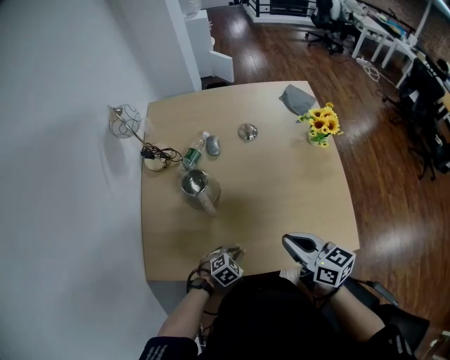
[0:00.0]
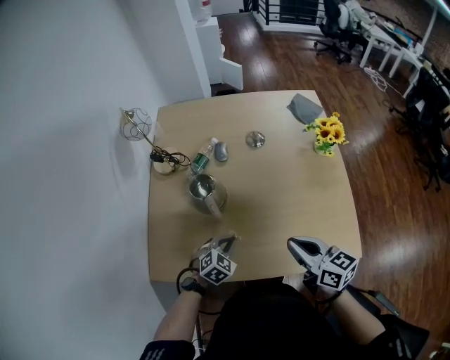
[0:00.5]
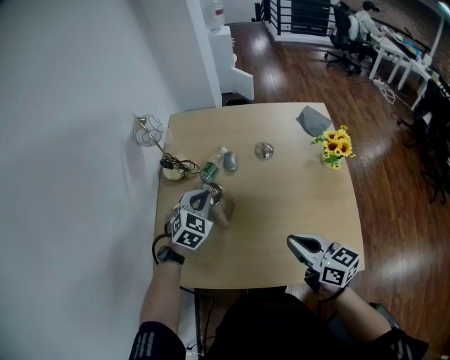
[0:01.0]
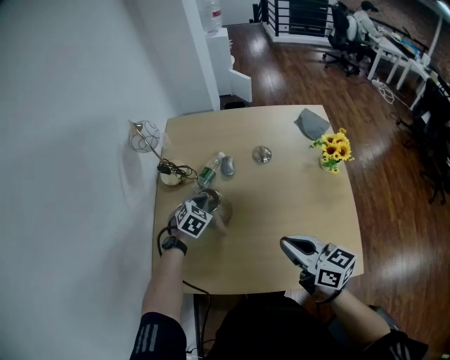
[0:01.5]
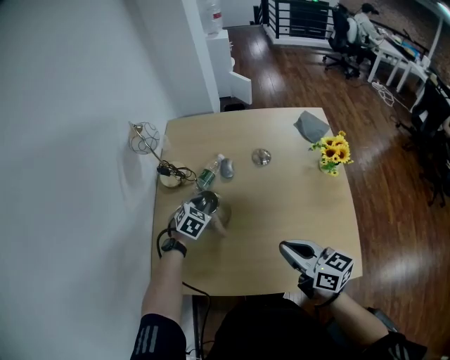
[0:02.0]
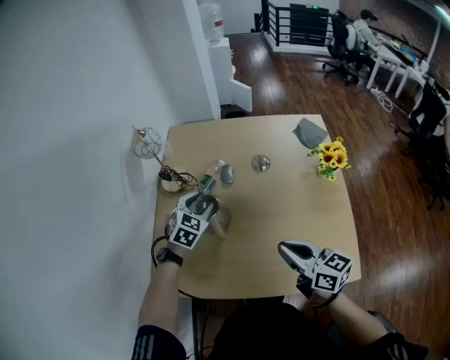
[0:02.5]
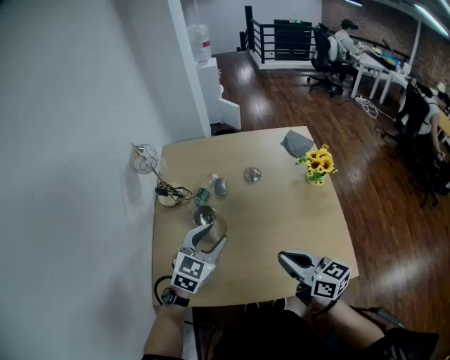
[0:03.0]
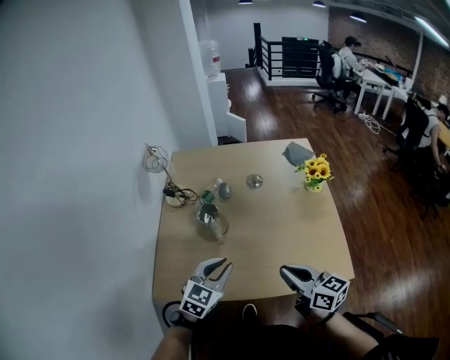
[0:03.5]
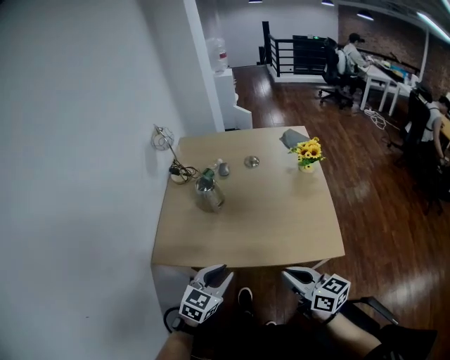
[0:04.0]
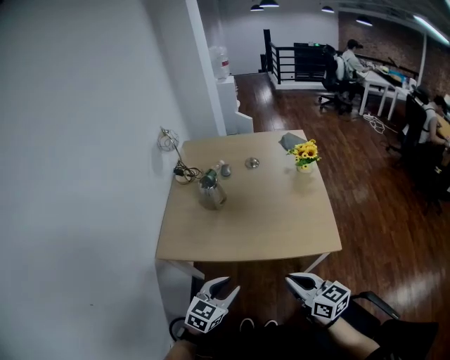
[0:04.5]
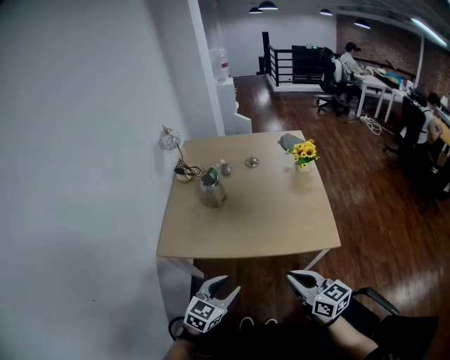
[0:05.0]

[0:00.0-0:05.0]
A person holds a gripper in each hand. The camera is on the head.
0:00.0 to 0:02.5: The left gripper moves forward and upward, about 35 cm, rotates roughly 40 degrees, and opens its fingers; the right gripper moves upward and forward, some 5 cm.
0:02.5 to 0:05.0: Both grippers move backward, some 50 cm. The left gripper changes its angle by approximately 30 degrees.

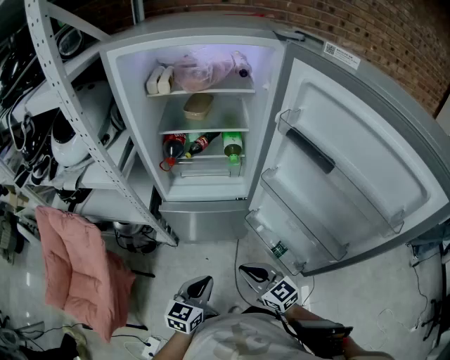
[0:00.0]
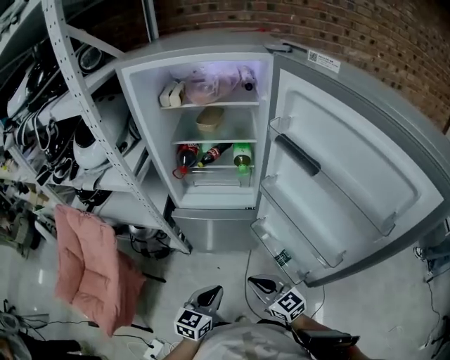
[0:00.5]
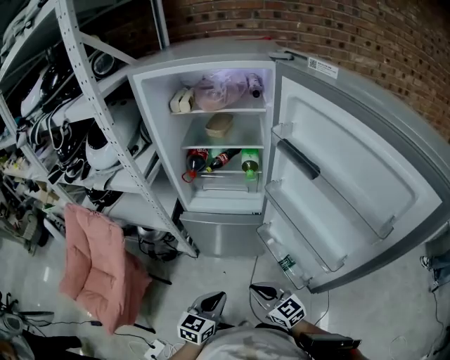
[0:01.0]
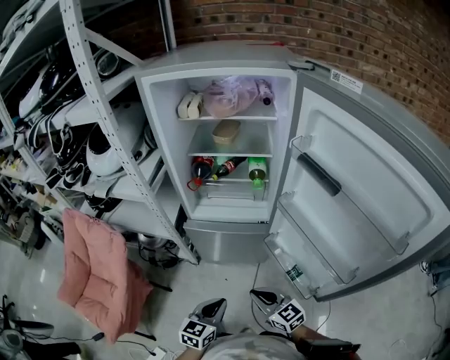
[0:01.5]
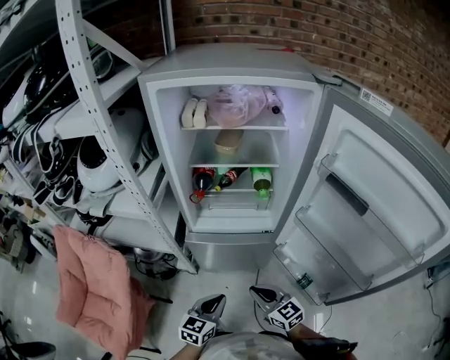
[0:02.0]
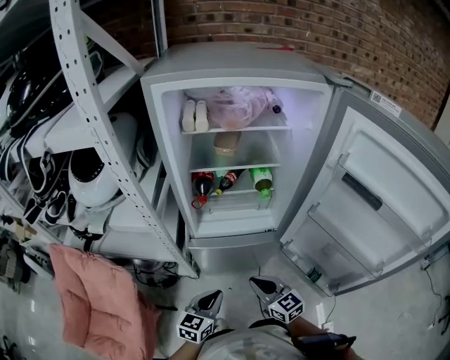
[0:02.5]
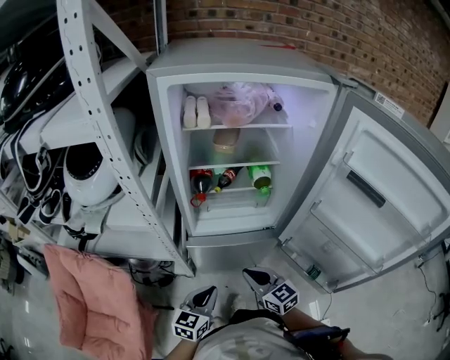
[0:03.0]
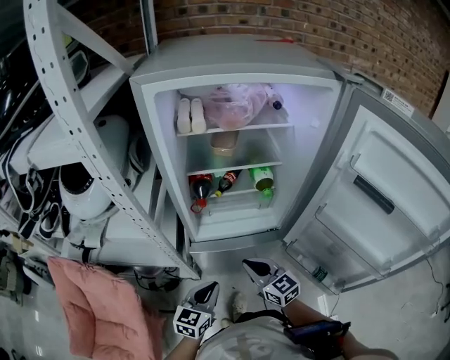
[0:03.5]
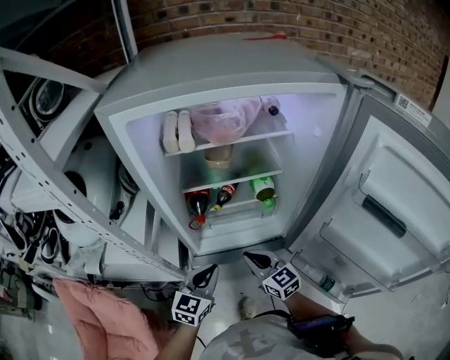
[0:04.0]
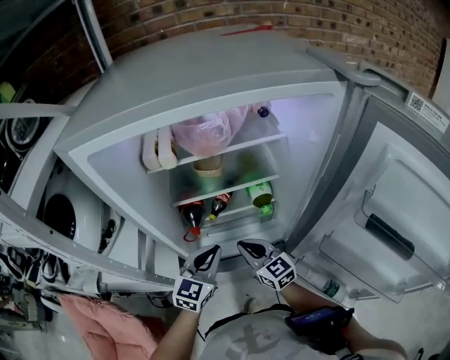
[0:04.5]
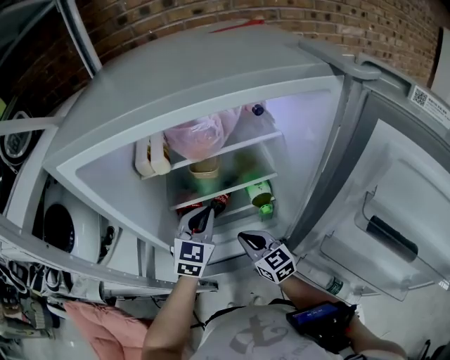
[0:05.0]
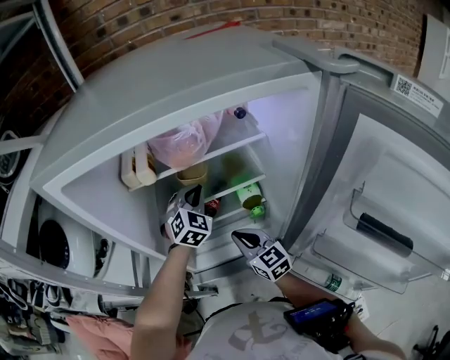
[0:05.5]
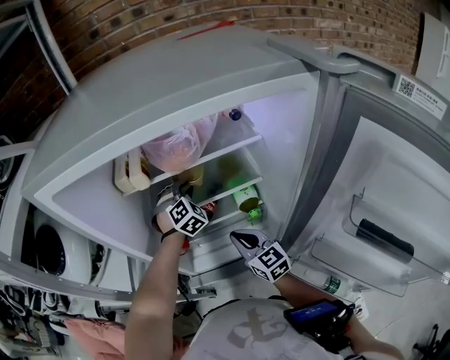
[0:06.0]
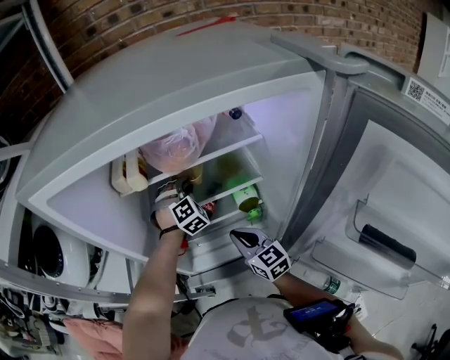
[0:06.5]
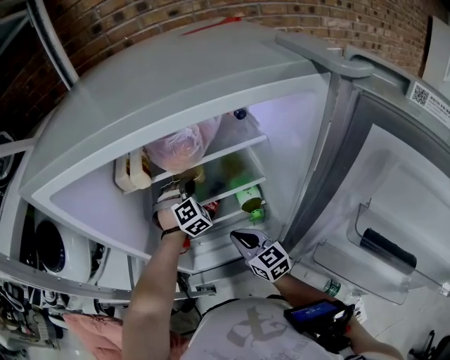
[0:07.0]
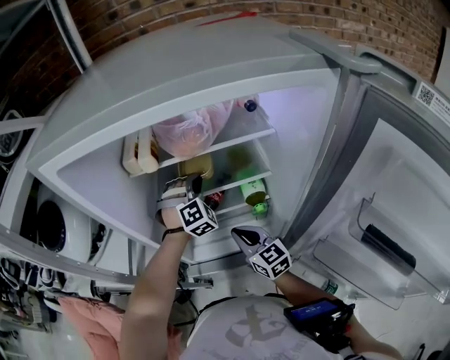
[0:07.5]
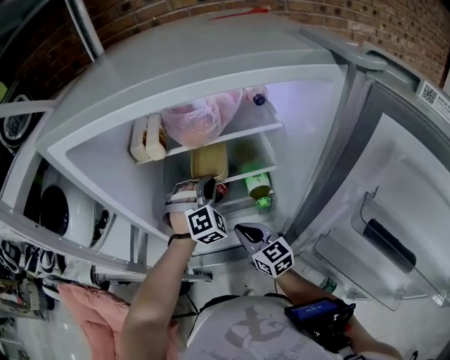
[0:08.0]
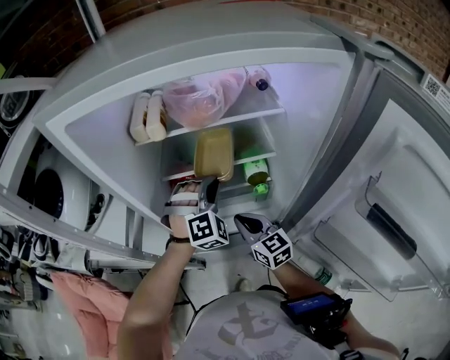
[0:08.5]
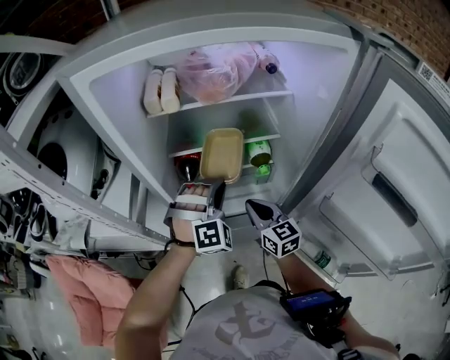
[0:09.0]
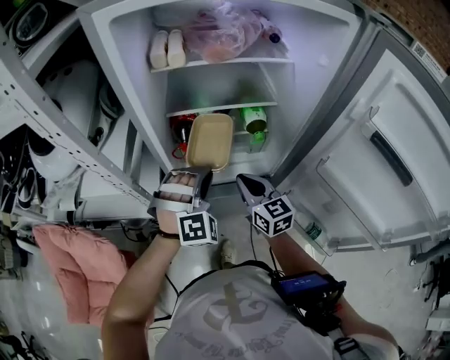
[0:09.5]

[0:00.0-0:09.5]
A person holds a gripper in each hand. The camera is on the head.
0:00.0 to 0:02.0: The left gripper heads forward, covering roughly 5 cm; the right gripper moves approximately 5 cm.
0:02.0 to 0:04.0: The grippers both shift forward by some 25 cm.
0:04.0 to 0:05.5: The right gripper moves forward, some 15 cm. The left gripper moves forward, some 30 cm, and rolls clockwise, seen from behind, by about 40 degrees.
0:05.5 to 0:07.5: The left gripper turns by about 30 degrees.
0:07.5 to 0:09.5: The left gripper goes some 25 cm backward. The right gripper travels backward by about 10 cm.

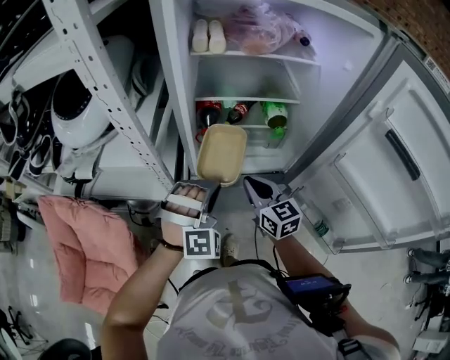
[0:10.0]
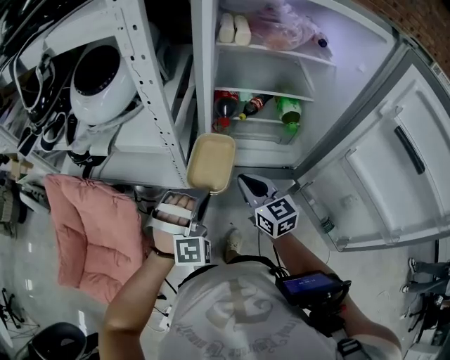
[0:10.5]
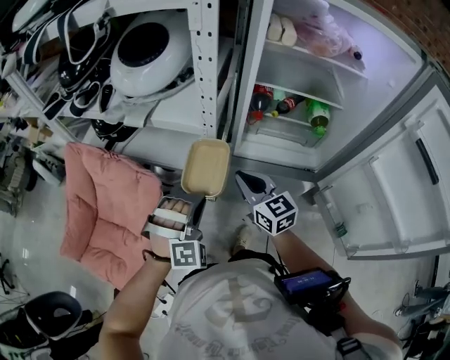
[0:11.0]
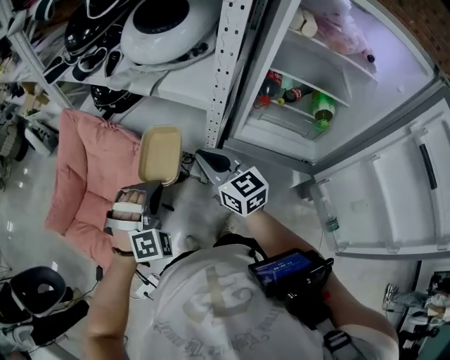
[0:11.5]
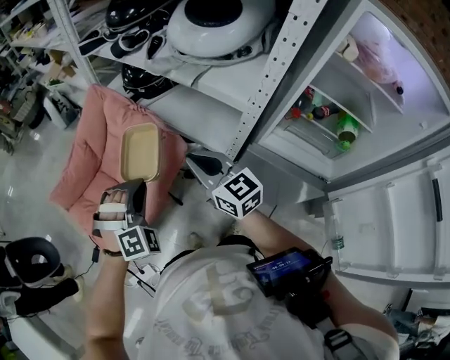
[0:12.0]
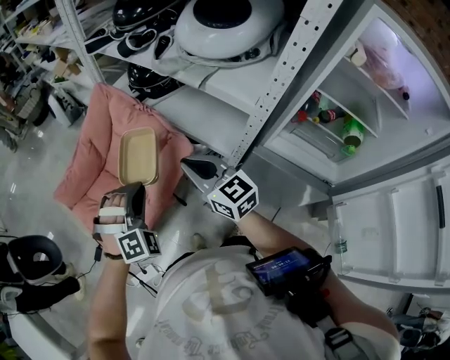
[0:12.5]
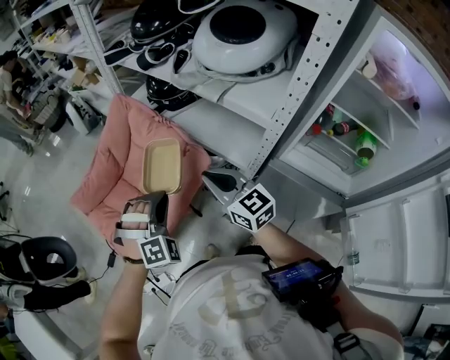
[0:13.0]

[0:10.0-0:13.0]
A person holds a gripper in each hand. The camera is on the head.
0:10.0 to 0:11.5: The right gripper changes place by about 30 cm, and swivels approximately 30 degrees. Meanwhile the left gripper shifts by approximately 30 cm, and swivels roughly 30 degrees.
0:11.5 to 0:13.0: The grippers both shift to the left by roughly 15 cm.

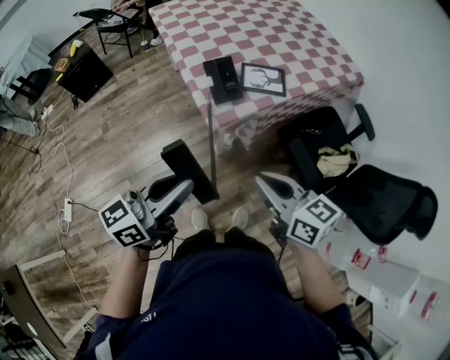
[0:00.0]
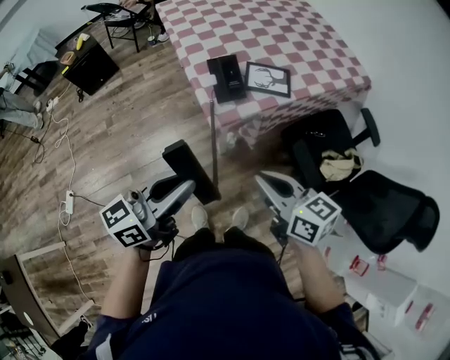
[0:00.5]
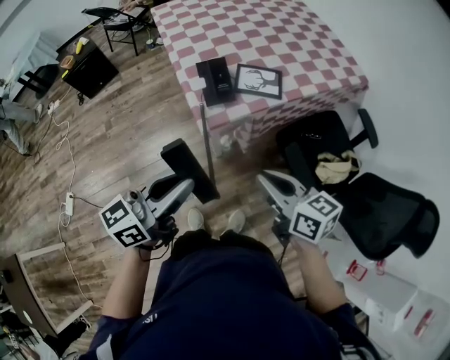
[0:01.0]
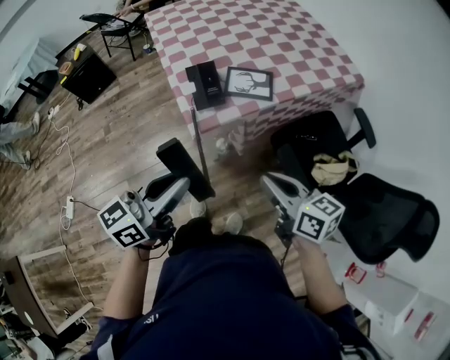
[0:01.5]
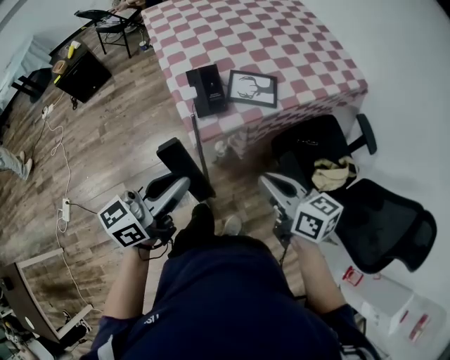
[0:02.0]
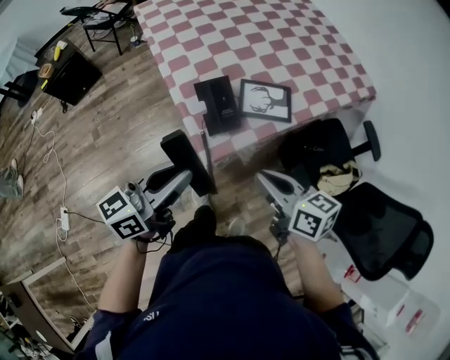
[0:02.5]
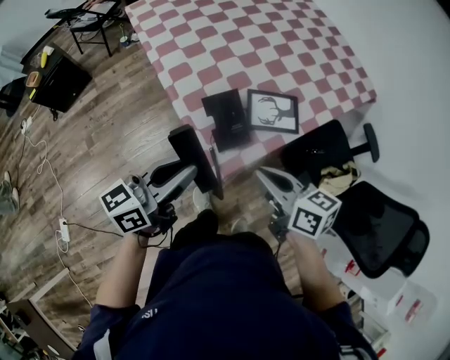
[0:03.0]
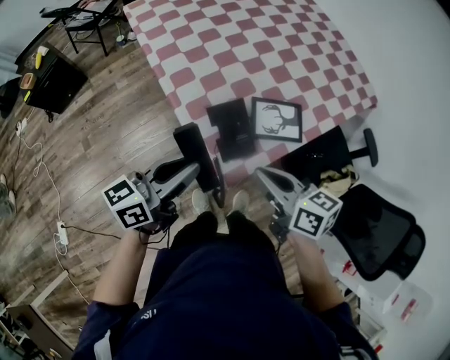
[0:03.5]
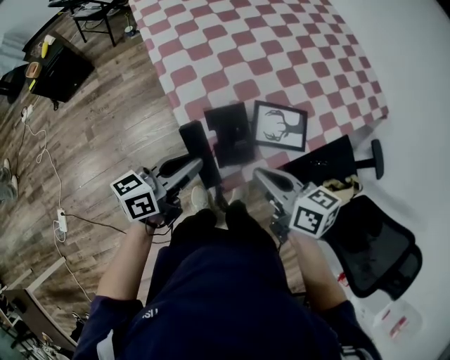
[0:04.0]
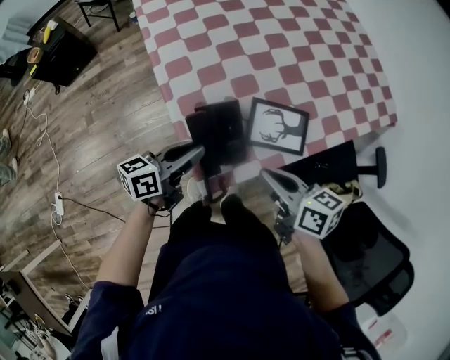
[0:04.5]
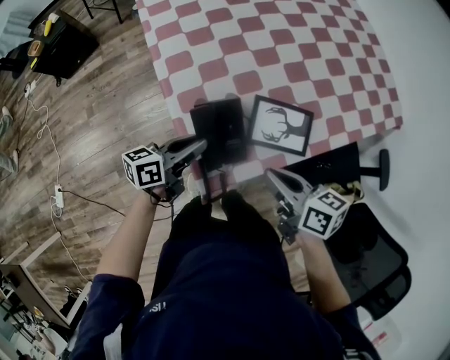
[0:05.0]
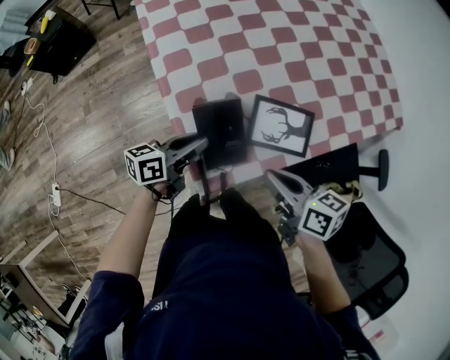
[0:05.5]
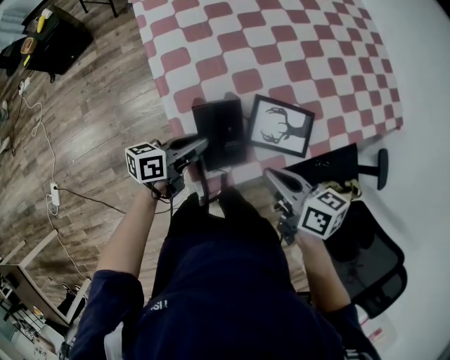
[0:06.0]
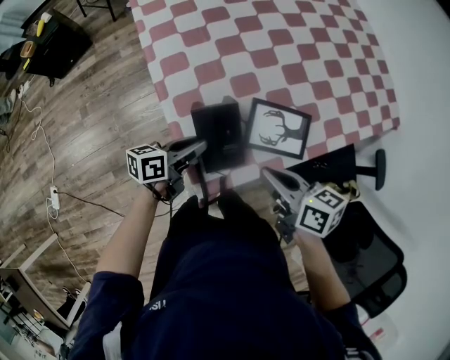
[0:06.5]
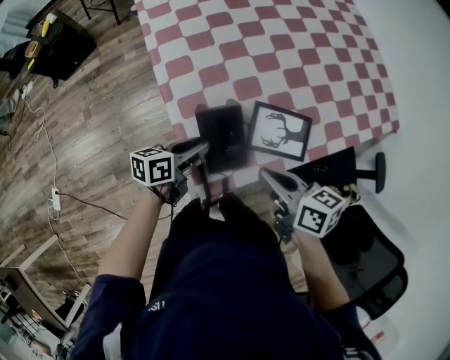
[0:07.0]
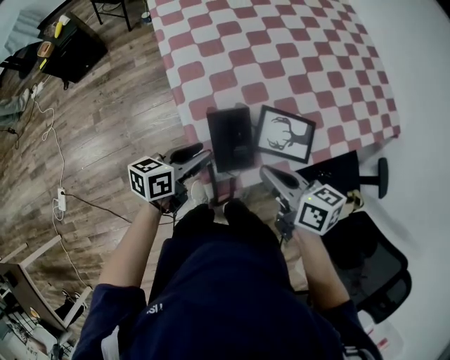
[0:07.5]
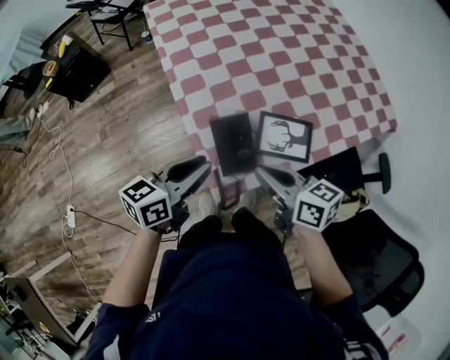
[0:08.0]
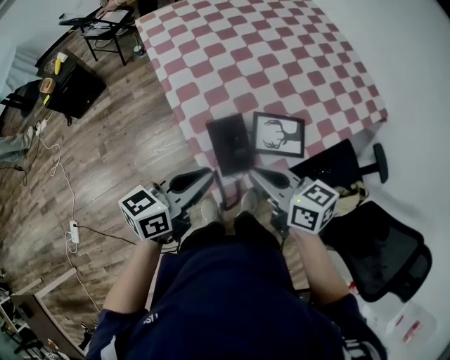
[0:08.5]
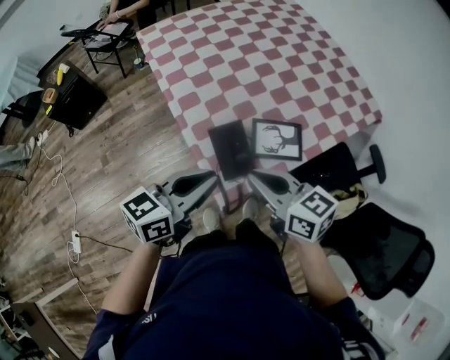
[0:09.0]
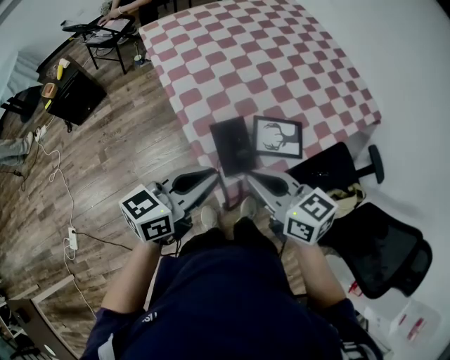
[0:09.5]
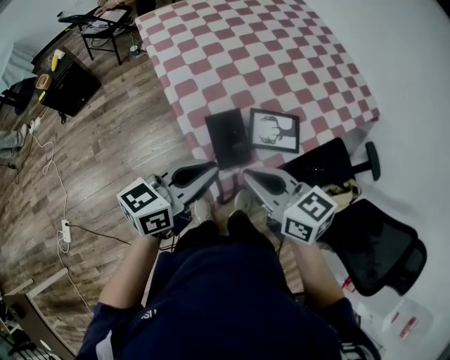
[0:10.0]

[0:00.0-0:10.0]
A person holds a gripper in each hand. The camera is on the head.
0:00.0 to 0:02.0: The left gripper moves forward and to the right, approximately 10 cm. The right gripper goes roughly 10 cm to the right and forward.
0:02.0 to 0:04.0: The left gripper shifts roughly 30 cm forward and downward. Meanwhile the right gripper shifts some 25 cm forward and to the left.
0:04.0 to 0:06.0: The left gripper heads downward, covering about 15 cm, while the right gripper travels to the right and downward by roughly 10 cm.
0:06.0 to 0:08.0: The left gripper travels upward by approximately 15 cm, and rotates some 20 degrees, while the right gripper heads upward and to the left, covering about 10 cm.
0:08.0 to 0:10.0: The right gripper is displaced upward and backward by roughly 10 cm, while the left gripper travels upward by some 5 cm.
